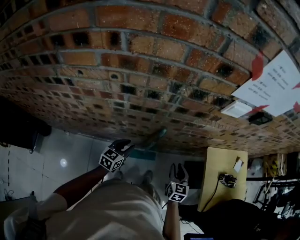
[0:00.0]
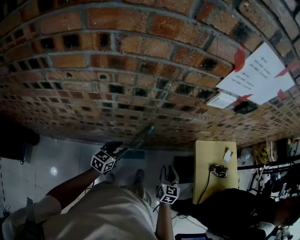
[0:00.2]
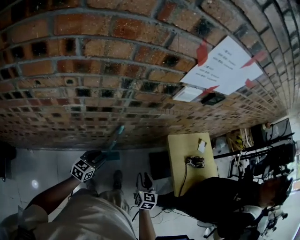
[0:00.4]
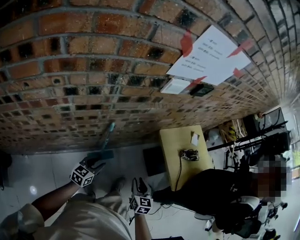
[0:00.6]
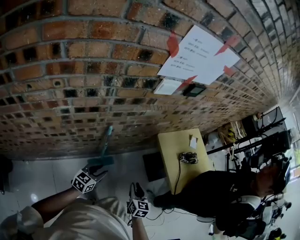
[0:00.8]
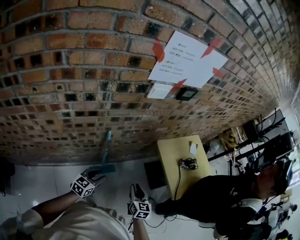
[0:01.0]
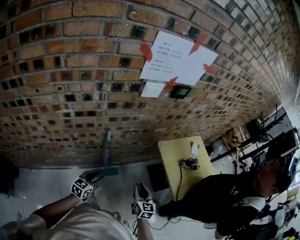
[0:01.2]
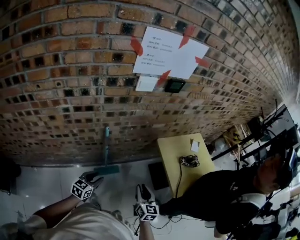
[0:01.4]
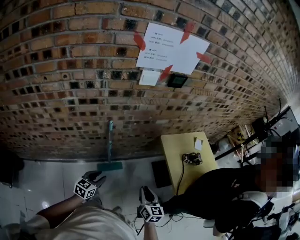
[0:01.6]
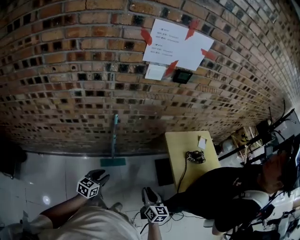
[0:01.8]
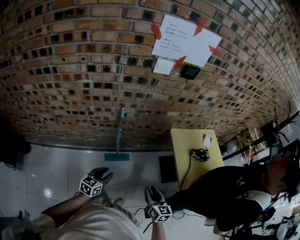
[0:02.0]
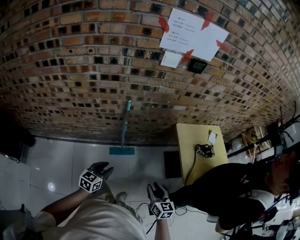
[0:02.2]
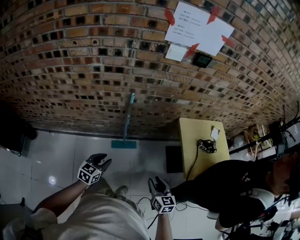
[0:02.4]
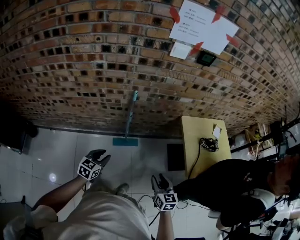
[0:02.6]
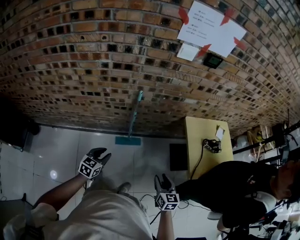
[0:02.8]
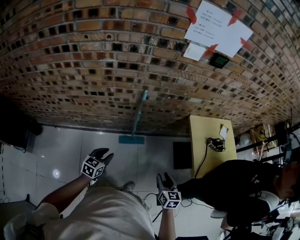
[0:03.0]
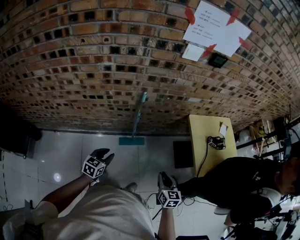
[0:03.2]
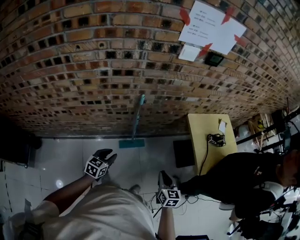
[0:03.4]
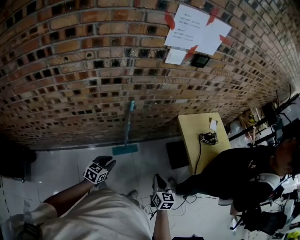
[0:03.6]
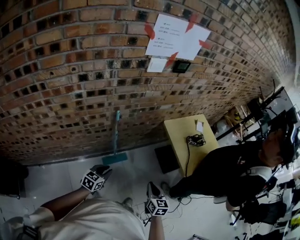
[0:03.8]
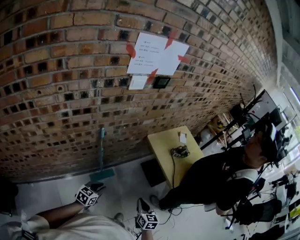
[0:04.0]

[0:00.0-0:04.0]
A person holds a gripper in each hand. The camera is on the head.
0:00.0 to 0:01.4: The right gripper travels backward and to the right by approximately 20 cm; the left gripper moves to the right and backward, about 20 cm.
0:01.4 to 0:02.6: The two grippers go some 15 cm backward. The right gripper swivels some 20 degrees.
0:02.6 to 0:04.0: The left gripper changes its angle by about 30 degrees, while the right gripper ends up about 10 cm from where it was, turns by some 30 degrees, and closes.

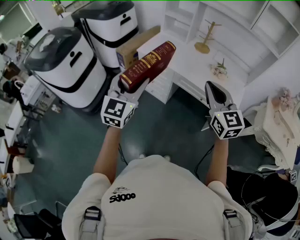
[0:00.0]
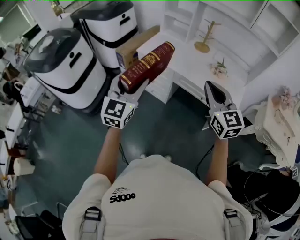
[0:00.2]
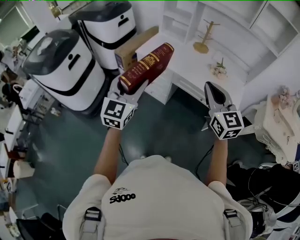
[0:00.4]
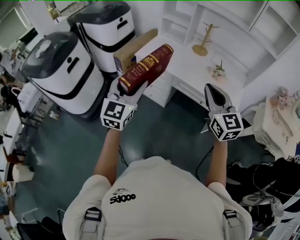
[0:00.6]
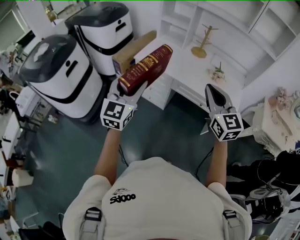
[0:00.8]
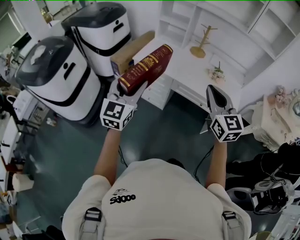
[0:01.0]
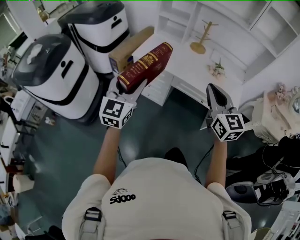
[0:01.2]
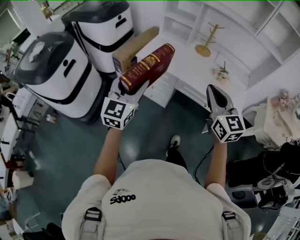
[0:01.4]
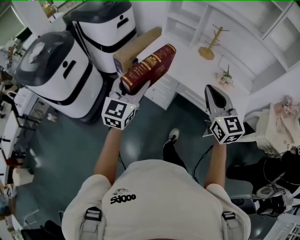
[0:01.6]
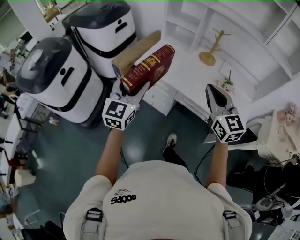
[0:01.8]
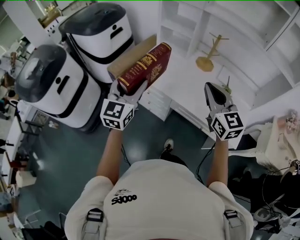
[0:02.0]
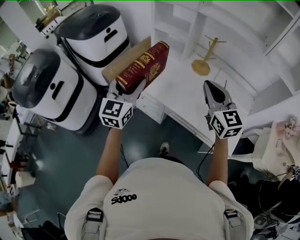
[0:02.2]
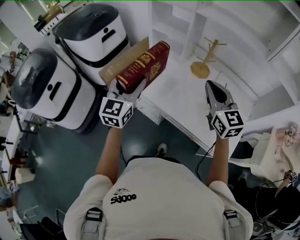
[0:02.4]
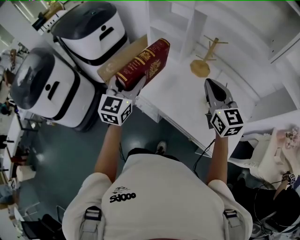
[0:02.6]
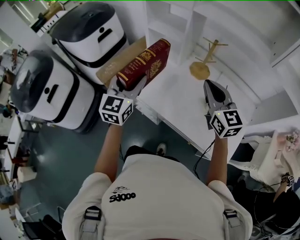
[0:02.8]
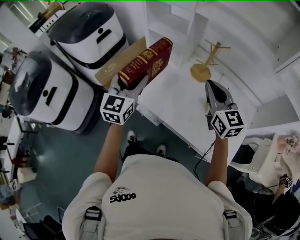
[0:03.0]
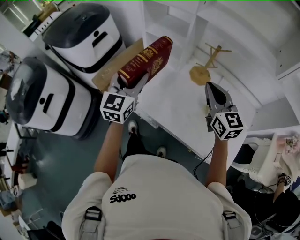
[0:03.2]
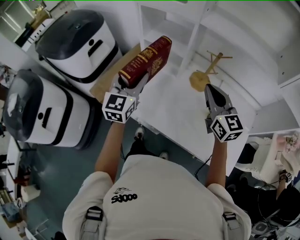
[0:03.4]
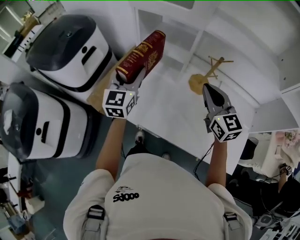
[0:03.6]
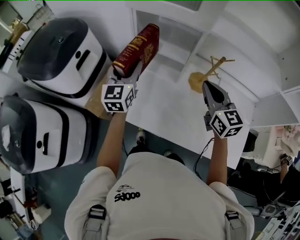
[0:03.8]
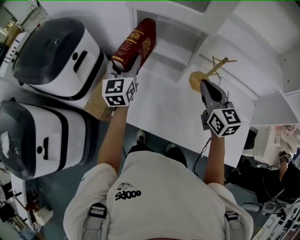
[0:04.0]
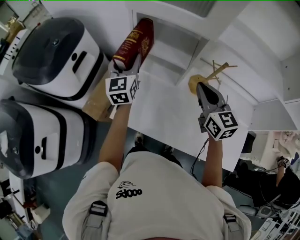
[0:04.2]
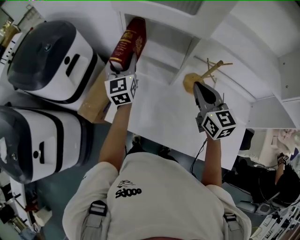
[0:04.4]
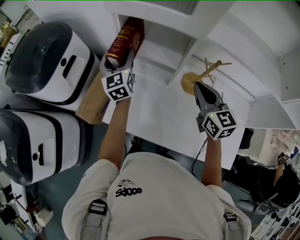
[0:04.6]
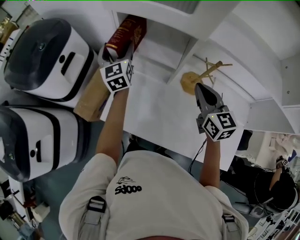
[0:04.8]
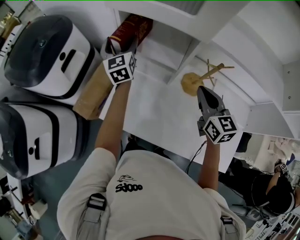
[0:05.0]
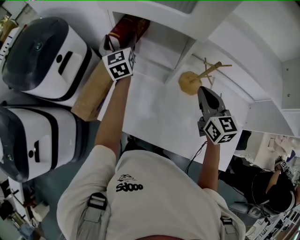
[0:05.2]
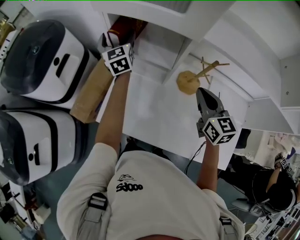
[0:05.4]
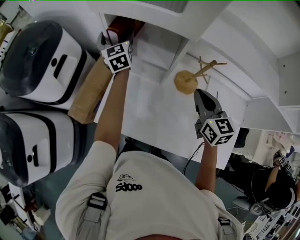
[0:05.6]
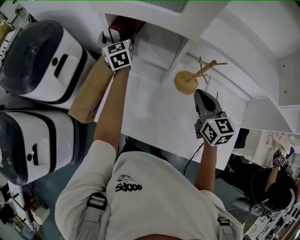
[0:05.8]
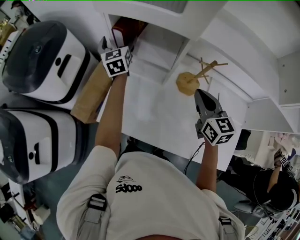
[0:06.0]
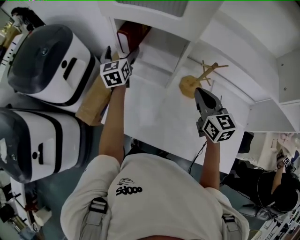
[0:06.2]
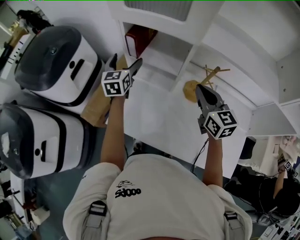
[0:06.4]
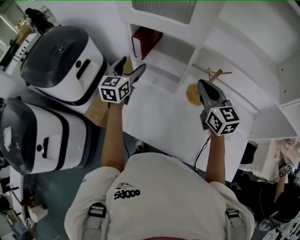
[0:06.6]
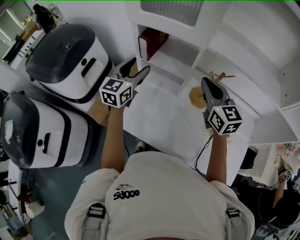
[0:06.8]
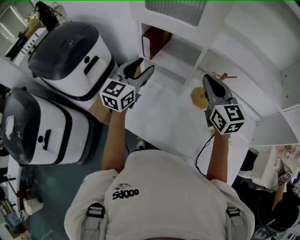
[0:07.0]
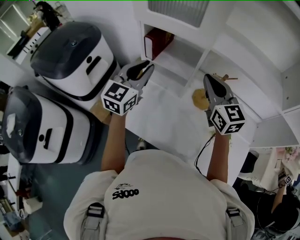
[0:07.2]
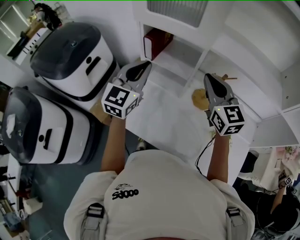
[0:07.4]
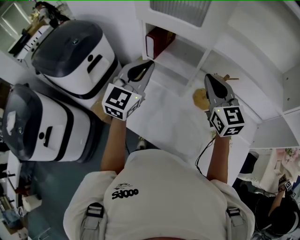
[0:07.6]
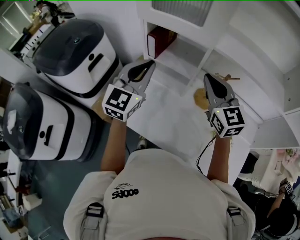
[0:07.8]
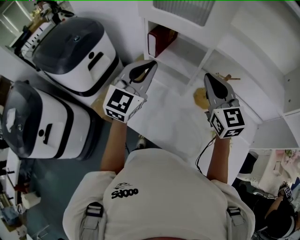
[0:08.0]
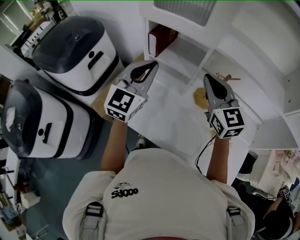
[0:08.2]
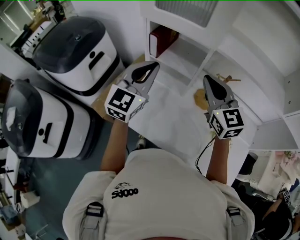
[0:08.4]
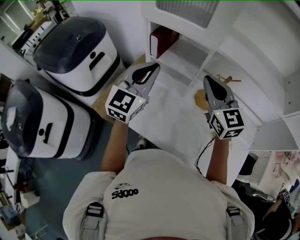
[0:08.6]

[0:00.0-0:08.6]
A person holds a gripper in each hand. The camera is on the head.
0:00.0 to 0:01.4: The grippers both shift forward and to the left by some 10 cm.
0:01.4 to 0:02.8: Both grippers travel together forward and to the right, some 35 cm.
0:02.8 to 0:04.4: The right gripper is displaced forward by roughly 20 cm. Meanwhile the left gripper moves forward, approximately 35 cm.
0:04.4 to 0:05.8: The right gripper shifts some 5 cm to the right. Meanwhile the left gripper shifts some 15 cm forward, and opens.
0:05.8 to 0:07.2: The left gripper is displaced backward by some 25 cm, changes its angle by roughly 40 degrees, and closes its fingers. Meanwhile the right gripper is displaced upward and to the left by some 15 cm, and changes its angle by some 20 degrees.
0:07.2 to 0:08.6: The grippers make only small movements.

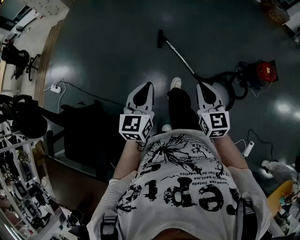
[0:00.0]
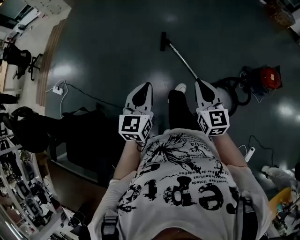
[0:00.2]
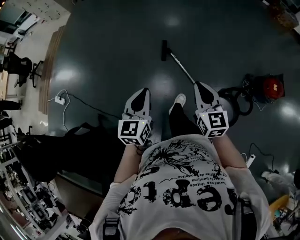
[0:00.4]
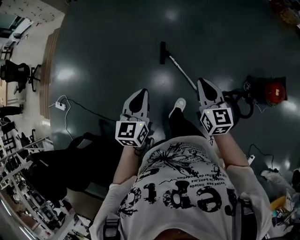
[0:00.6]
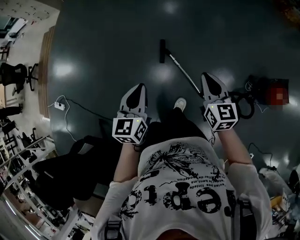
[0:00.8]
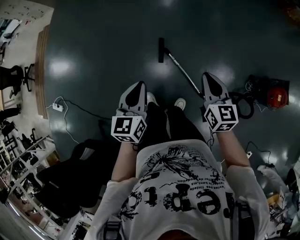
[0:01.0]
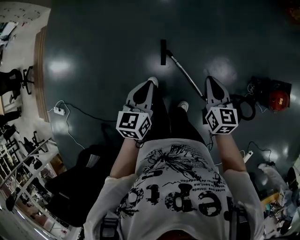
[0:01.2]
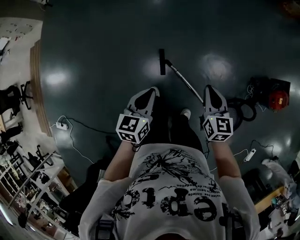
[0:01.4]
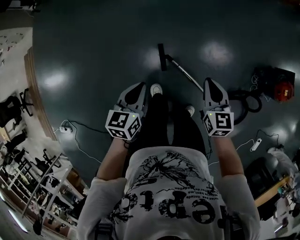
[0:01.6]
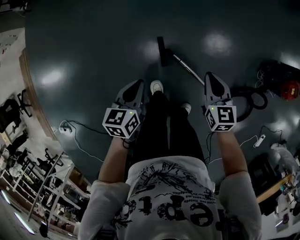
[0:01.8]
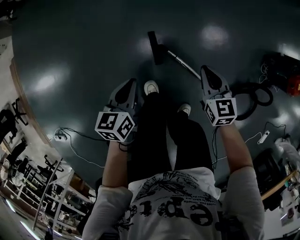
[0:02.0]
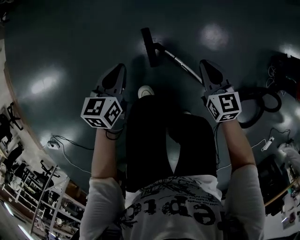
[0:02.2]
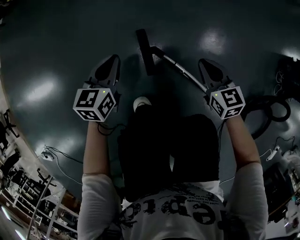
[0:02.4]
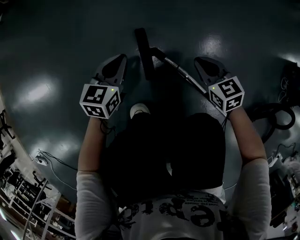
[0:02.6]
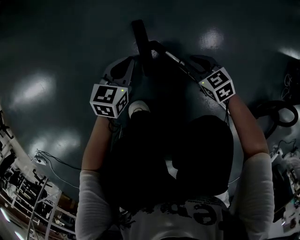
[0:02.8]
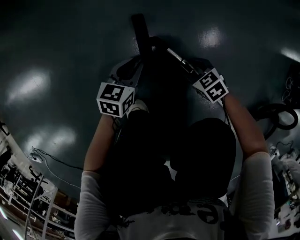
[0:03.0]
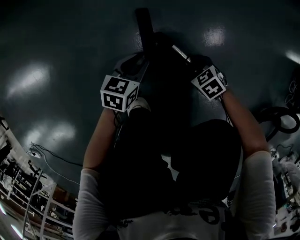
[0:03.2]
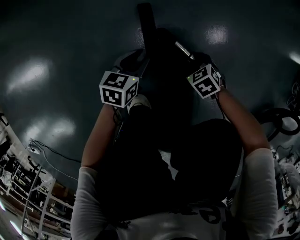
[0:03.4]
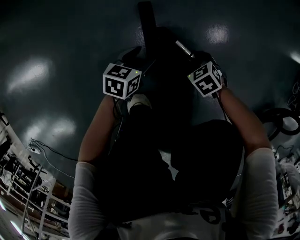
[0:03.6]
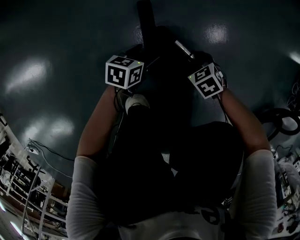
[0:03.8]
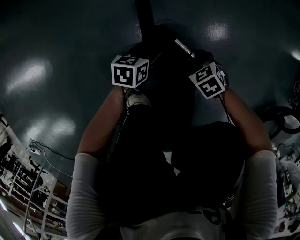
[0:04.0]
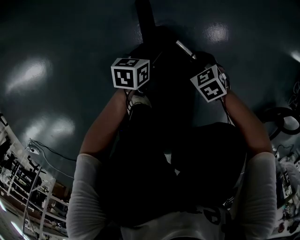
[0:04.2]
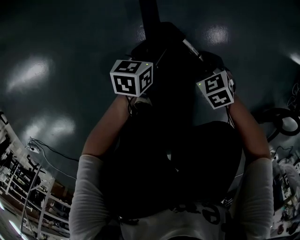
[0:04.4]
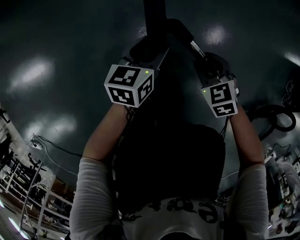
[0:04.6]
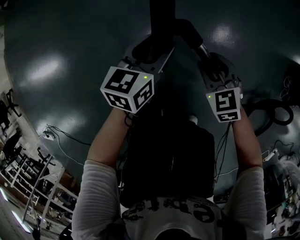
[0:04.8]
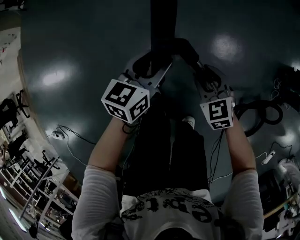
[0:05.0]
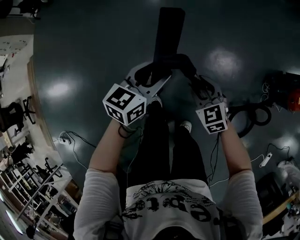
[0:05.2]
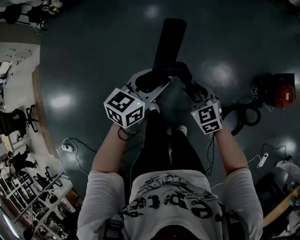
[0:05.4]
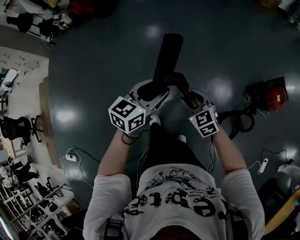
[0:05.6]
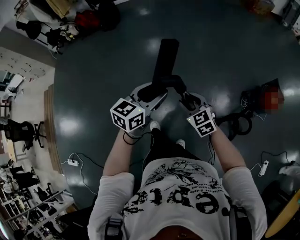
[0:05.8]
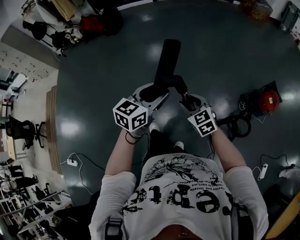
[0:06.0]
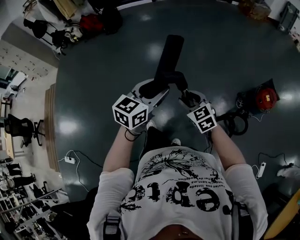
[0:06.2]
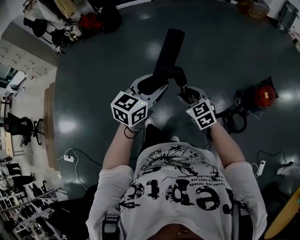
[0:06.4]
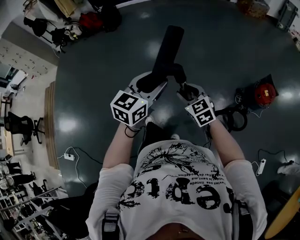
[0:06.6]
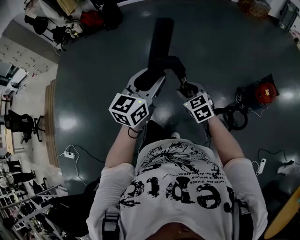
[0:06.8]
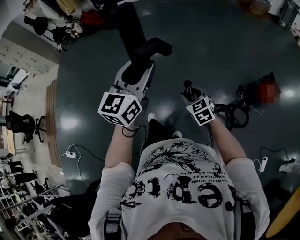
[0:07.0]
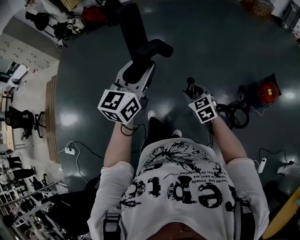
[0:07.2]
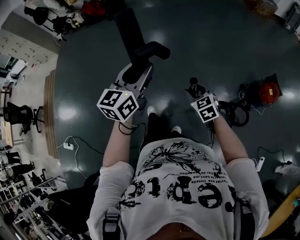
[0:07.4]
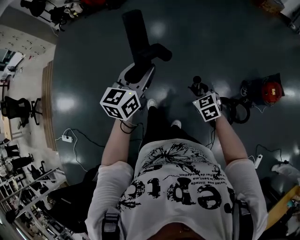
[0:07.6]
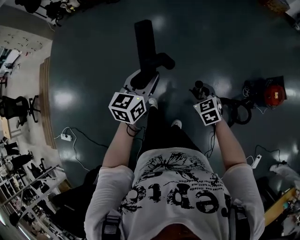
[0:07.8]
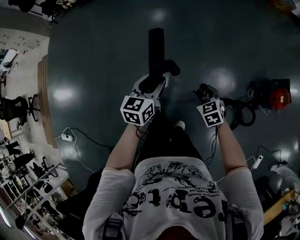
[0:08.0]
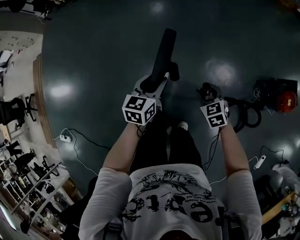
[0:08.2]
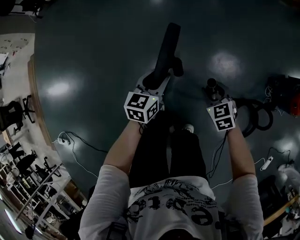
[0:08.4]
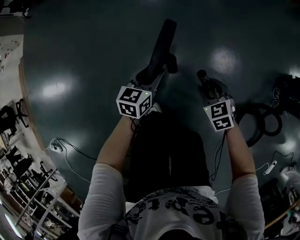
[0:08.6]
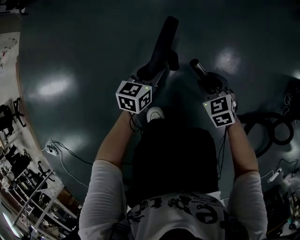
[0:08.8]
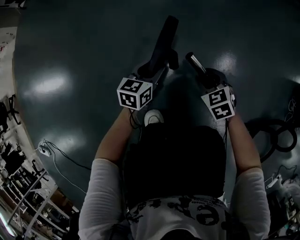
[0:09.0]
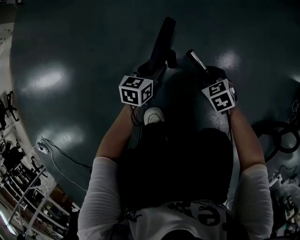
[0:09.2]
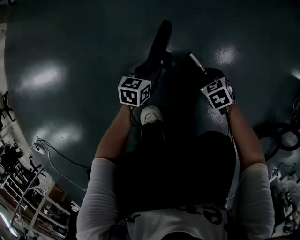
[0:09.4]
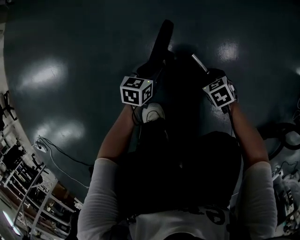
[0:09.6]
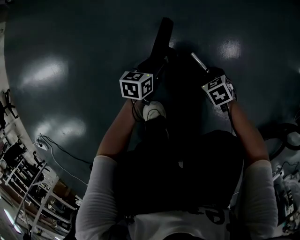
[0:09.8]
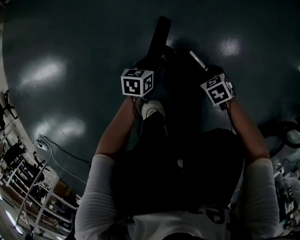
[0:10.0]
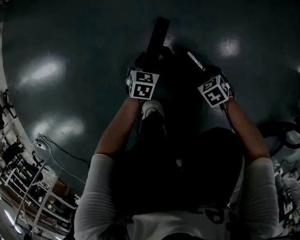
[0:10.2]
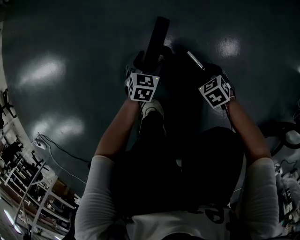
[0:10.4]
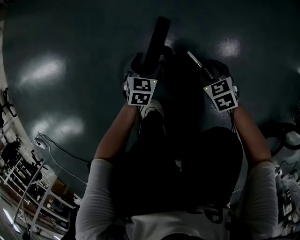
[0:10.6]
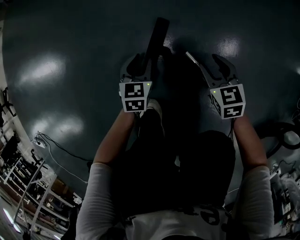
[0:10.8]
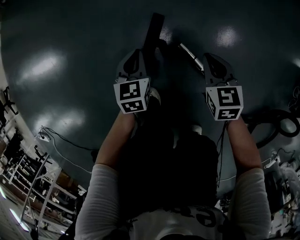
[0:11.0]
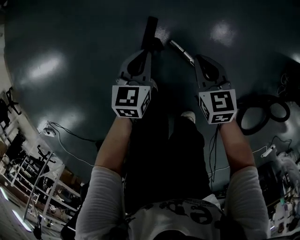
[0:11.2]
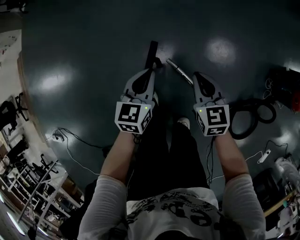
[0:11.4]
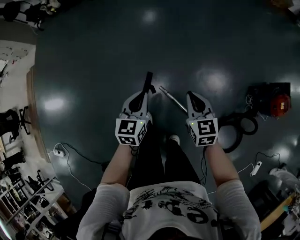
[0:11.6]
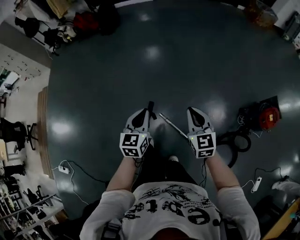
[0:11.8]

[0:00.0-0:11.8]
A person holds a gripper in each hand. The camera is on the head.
0:00.0 to 0:01.4: The two grippers travel together, forward, about 60 cm. The right gripper rotates approximately 20 degrees. The left gripper changes its angle by some 30 degrees.
0:01.4 to 0:03.0: Both grippers move downward, approximately 80 cm. The right gripper changes its angle by some 50 degrees, and opens its fingers.
0:03.0 to 0:04.4: The left gripper opens its fingers.
0:04.4 to 0:06.0: Both grippers move upward, some 90 cm. The right gripper angles its fingers upward, by approximately 30 degrees. Meanwhile the left gripper swivels about 40 degrees.
0:06.0 to 0:07.4: The left gripper goes roughly 10 cm upward and to the left, and rotates roughly 20 degrees, while the right gripper heads backward, covering approximately 5 cm.
0:07.4 to 0:08.8: The two grippers go about 70 cm downward. The left gripper turns by about 30 degrees.
0:08.8 to 0:10.4: Both grippers travel together downward, approximately 25 cm. The right gripper swivels some 20 degrees; the left gripper turns by some 30 degrees, and opens.
0:10.4 to 0:11.8: Both grippers travel together upward, approximately 90 cm. The left gripper points its fingers approximately 30 degrees further upward, and closes up. Meanwhile the right gripper tips its fingers upward by some 50 degrees, and closes.
